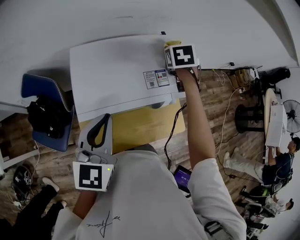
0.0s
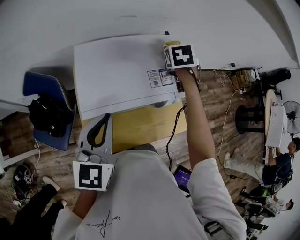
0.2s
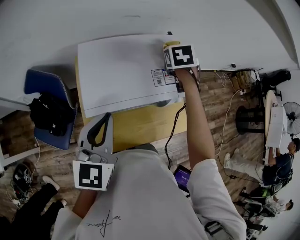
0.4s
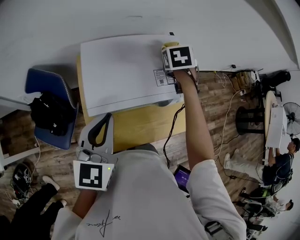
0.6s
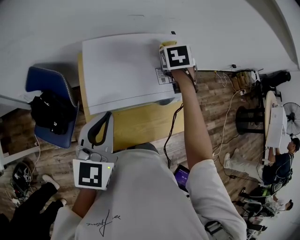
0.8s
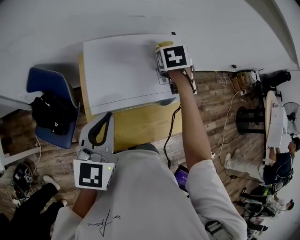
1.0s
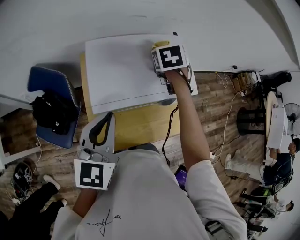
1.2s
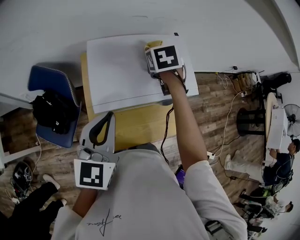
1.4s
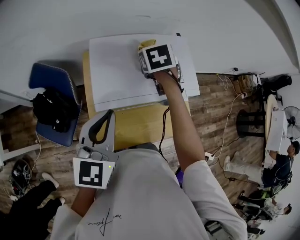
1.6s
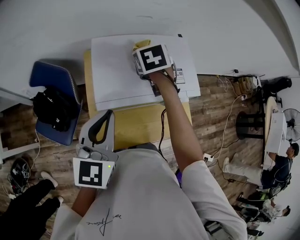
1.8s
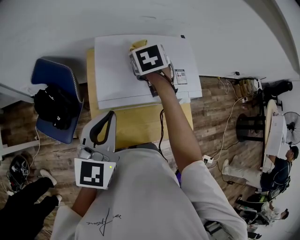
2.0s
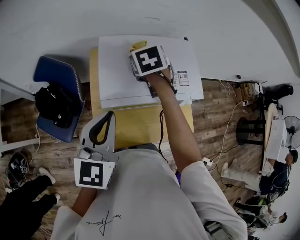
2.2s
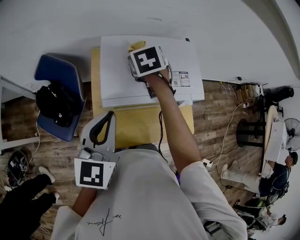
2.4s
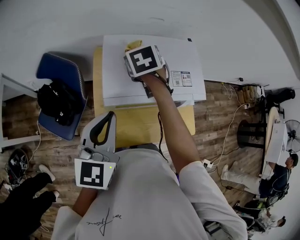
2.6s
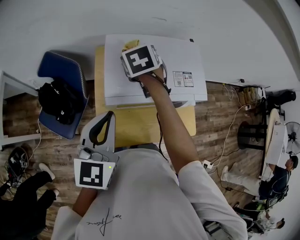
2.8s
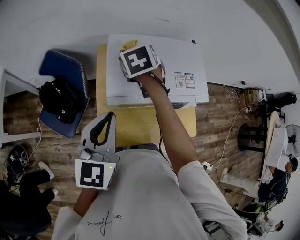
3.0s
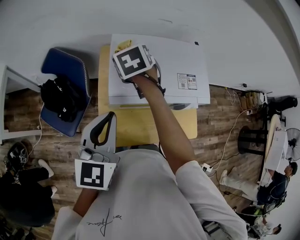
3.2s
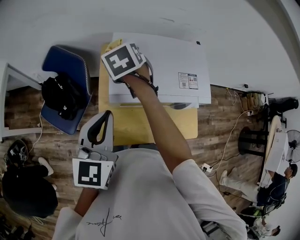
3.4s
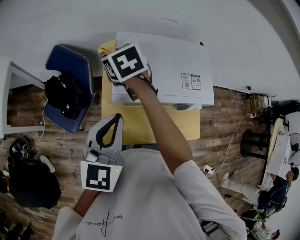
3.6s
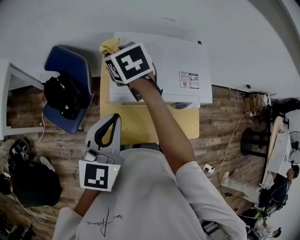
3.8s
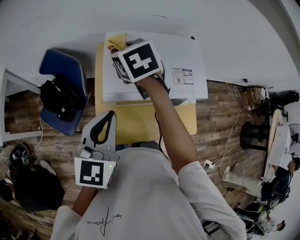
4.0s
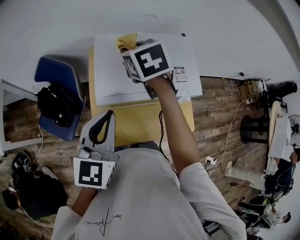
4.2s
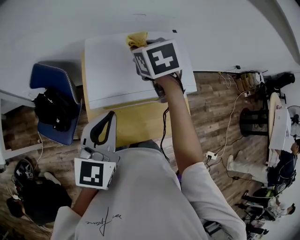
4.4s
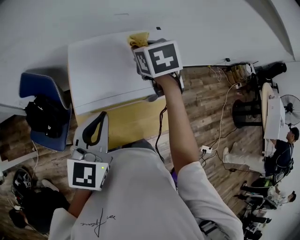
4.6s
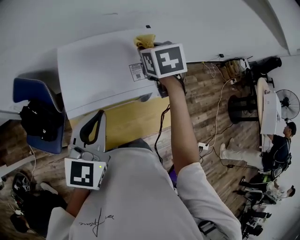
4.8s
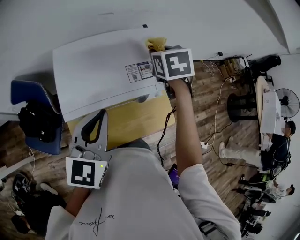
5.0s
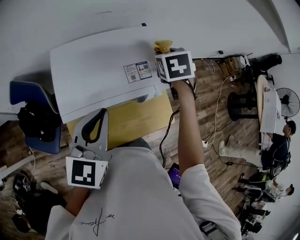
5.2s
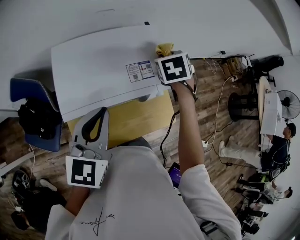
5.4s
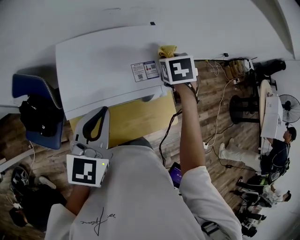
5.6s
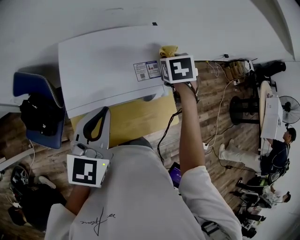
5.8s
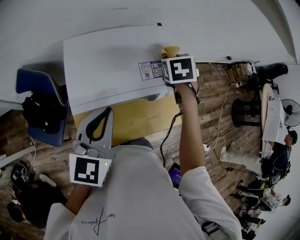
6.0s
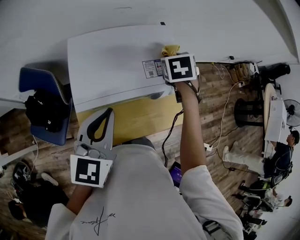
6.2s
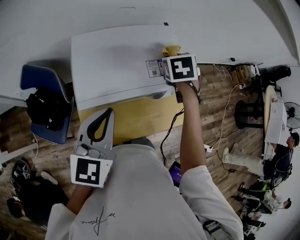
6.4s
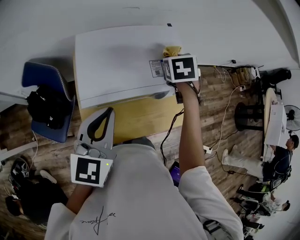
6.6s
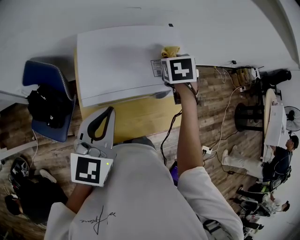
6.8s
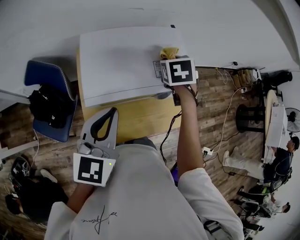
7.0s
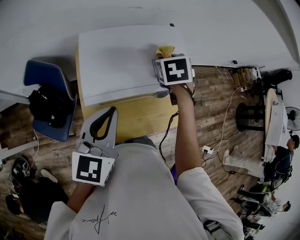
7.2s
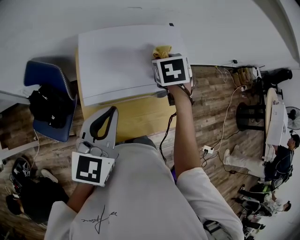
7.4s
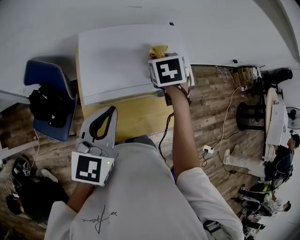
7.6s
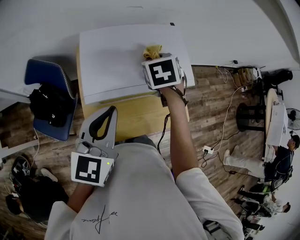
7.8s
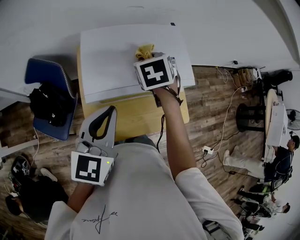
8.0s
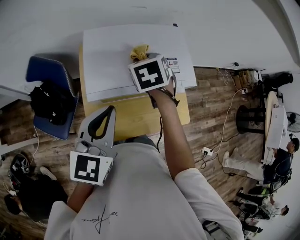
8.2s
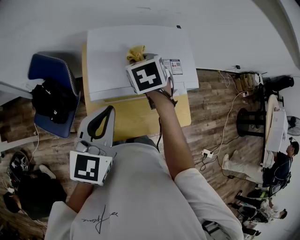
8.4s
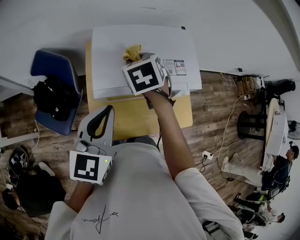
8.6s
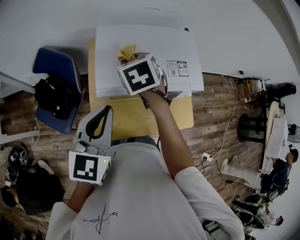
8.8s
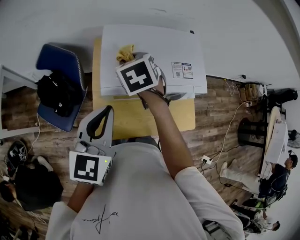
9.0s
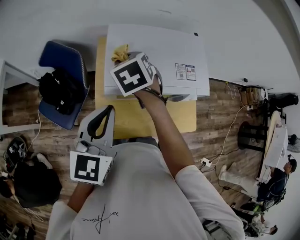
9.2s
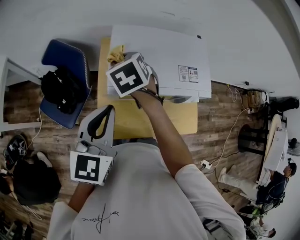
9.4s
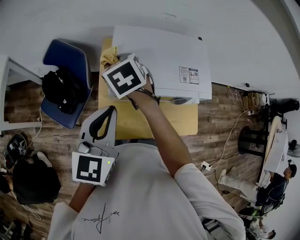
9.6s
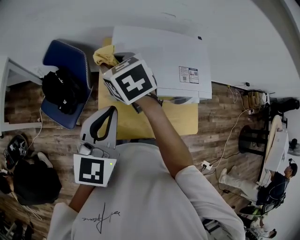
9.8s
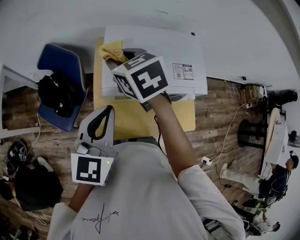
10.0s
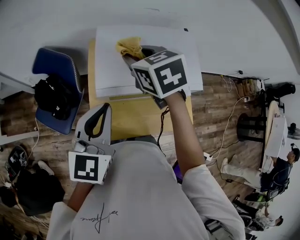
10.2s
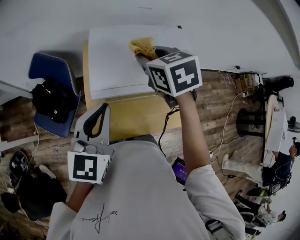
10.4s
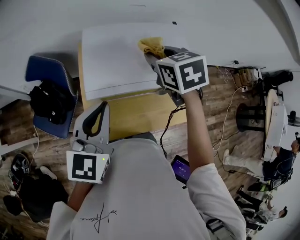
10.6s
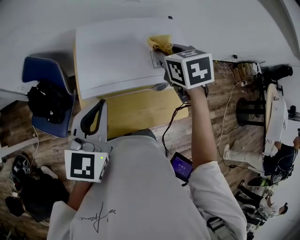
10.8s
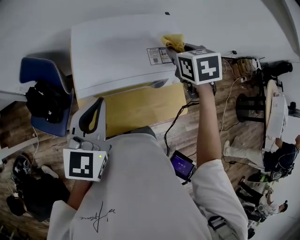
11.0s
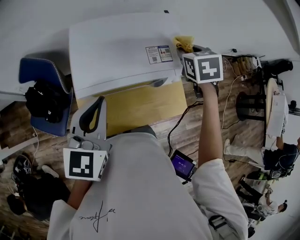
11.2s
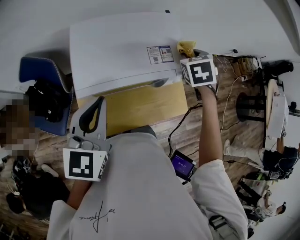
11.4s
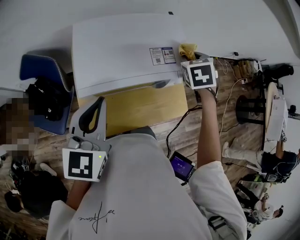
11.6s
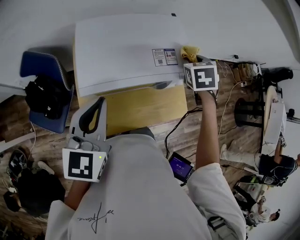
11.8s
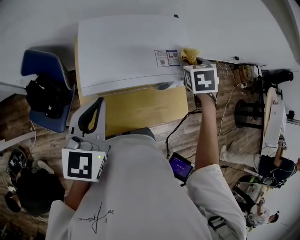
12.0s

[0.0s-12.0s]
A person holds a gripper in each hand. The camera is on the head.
0.0s to 1.6s: The left gripper ends up about 5 cm from where it was; the right gripper goes some 20 cm to the left and backward.
1.6s to 3.0s: The right gripper heads to the left, covering approximately 15 cm.
3.0s to 4.4s: The right gripper heads to the right and upward, covering roughly 10 cm; the left gripper travels to the right by approximately 5 cm.
4.4s to 6.0s: The left gripper changes place by roughly 5 cm. The right gripper heads to the right, covering about 20 cm, and turns by some 30 degrees.
6.0s to 7.6s: The right gripper shifts roughly 10 cm to the left and backward.
7.6s to 9.0s: The left gripper heads to the left, covering about 5 cm; the right gripper travels to the left by roughly 20 cm, and changes its angle by approximately 20 degrees.
9.0s to 10.4s: The right gripper travels to the right and upward by roughly 10 cm.
10.4s to 12.0s: The right gripper shifts by about 25 cm, and swivels about 30 degrees.

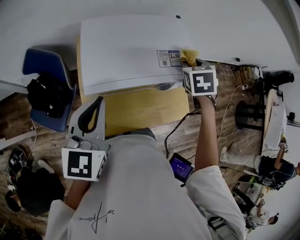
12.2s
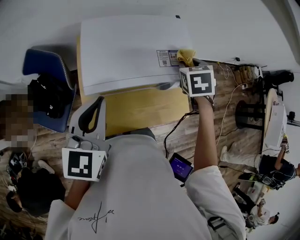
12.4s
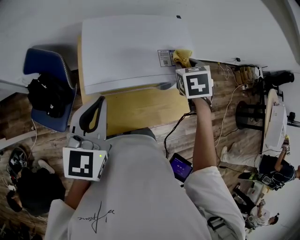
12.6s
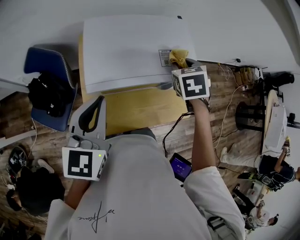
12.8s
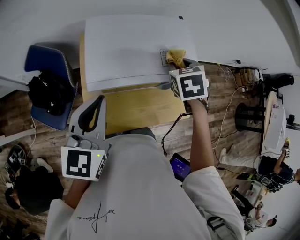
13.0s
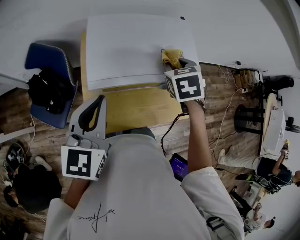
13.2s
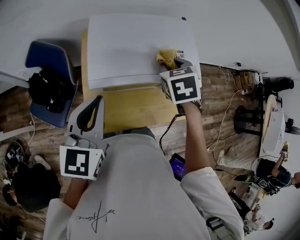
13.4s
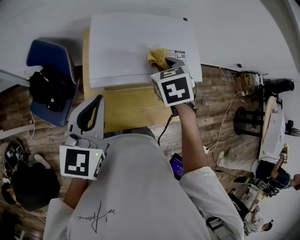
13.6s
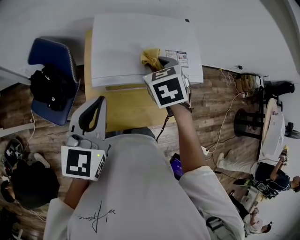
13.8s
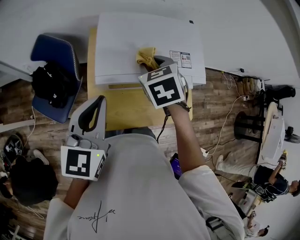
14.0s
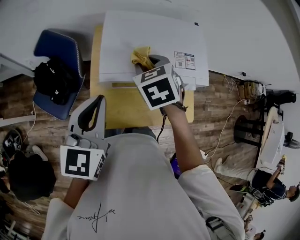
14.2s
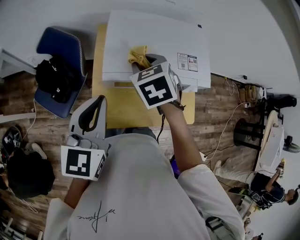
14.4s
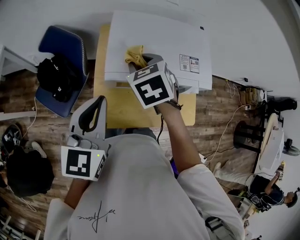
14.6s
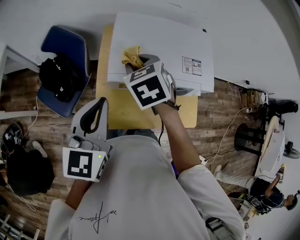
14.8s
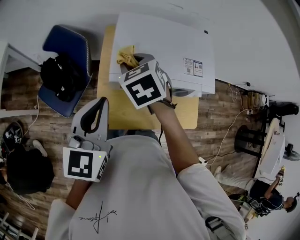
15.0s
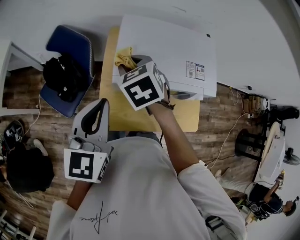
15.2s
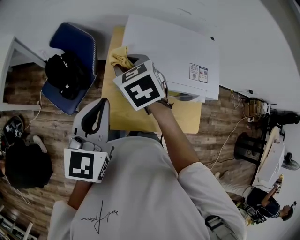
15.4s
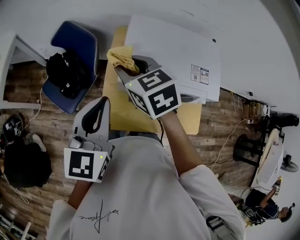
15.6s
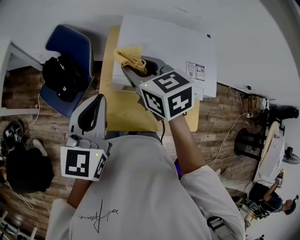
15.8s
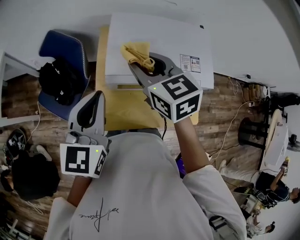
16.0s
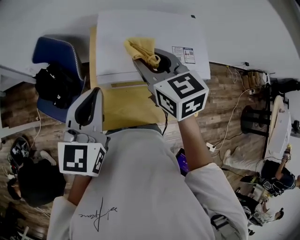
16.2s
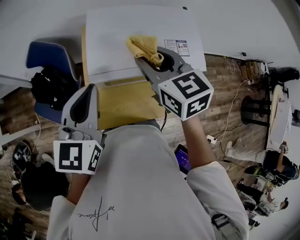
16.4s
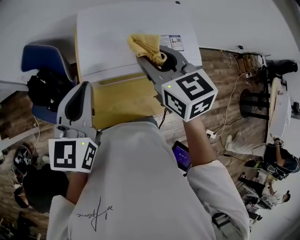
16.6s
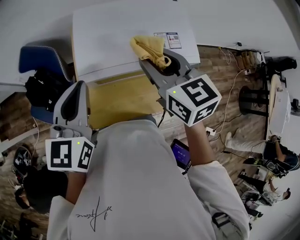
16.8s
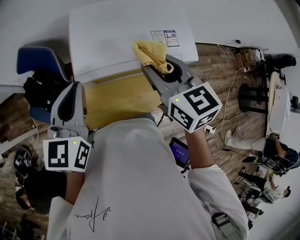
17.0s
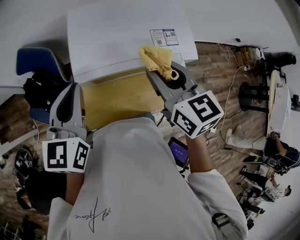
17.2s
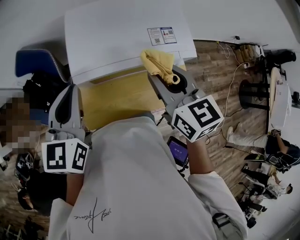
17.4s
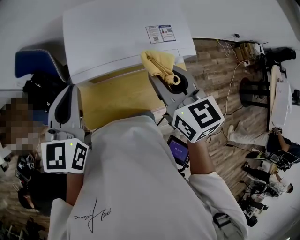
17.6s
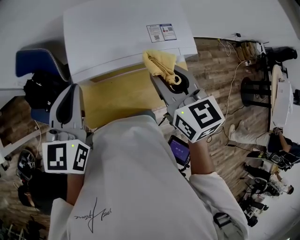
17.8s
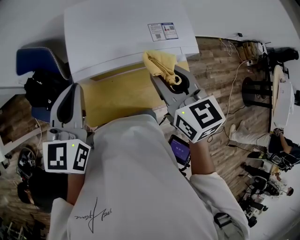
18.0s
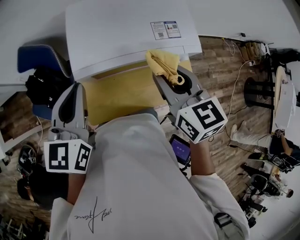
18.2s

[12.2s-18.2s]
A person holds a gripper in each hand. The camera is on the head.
12.2s to 13.8s: The right gripper is displaced to the left and backward by some 20 cm.
13.8s to 15.2s: The right gripper travels to the left by approximately 15 cm; the left gripper moves approximately 5 cm.
15.2s to 16.6s: The right gripper is displaced to the right and upward by about 15 cm, and swivels approximately 30 degrees; the left gripper ends up some 5 cm from where it was.
16.6s to 18.2s: The right gripper goes approximately 10 cm backward and to the right.

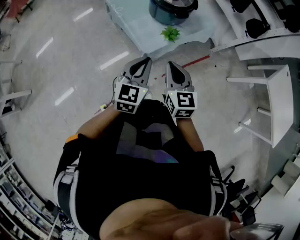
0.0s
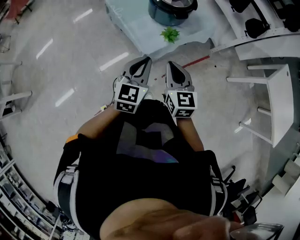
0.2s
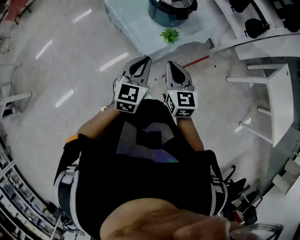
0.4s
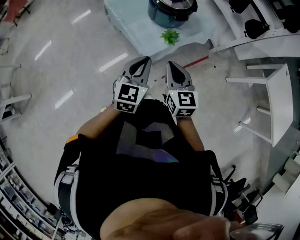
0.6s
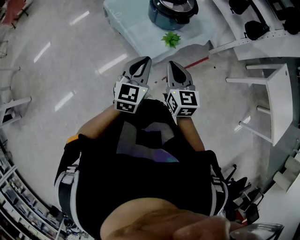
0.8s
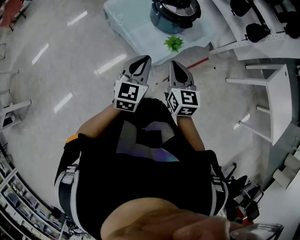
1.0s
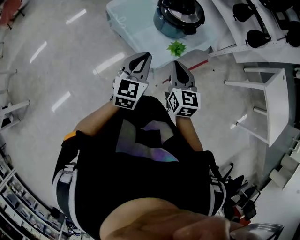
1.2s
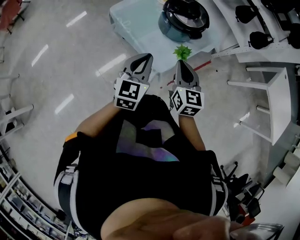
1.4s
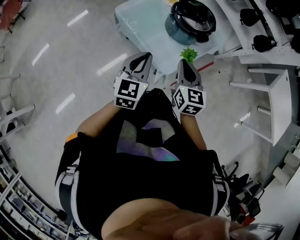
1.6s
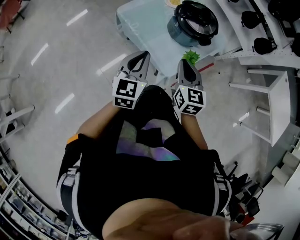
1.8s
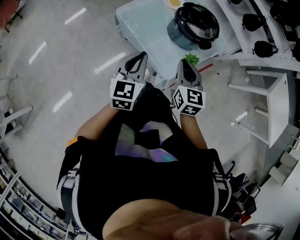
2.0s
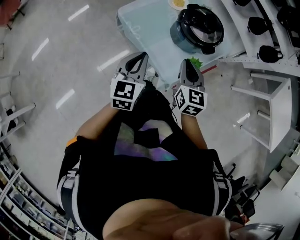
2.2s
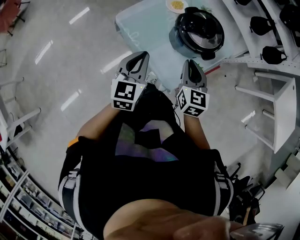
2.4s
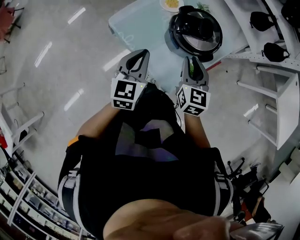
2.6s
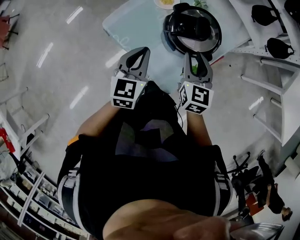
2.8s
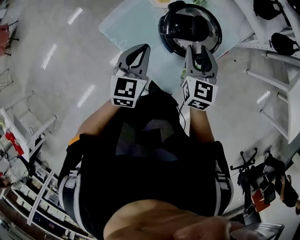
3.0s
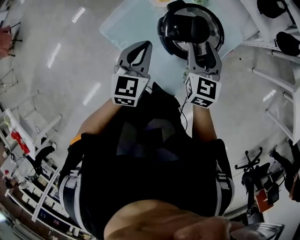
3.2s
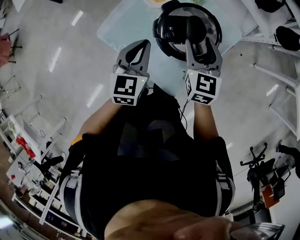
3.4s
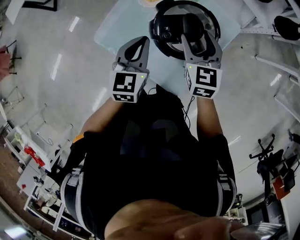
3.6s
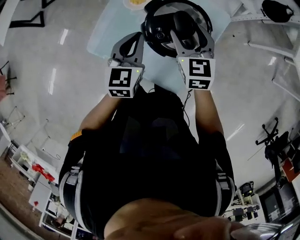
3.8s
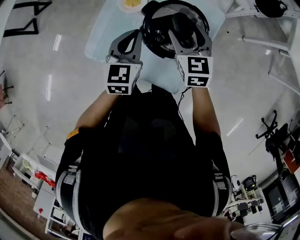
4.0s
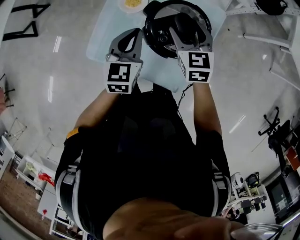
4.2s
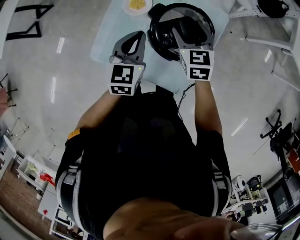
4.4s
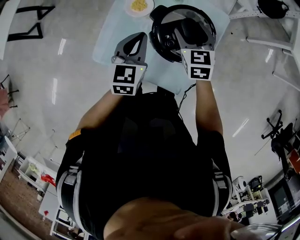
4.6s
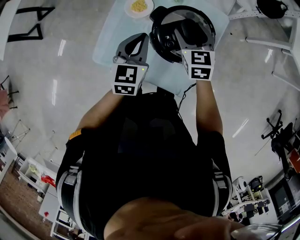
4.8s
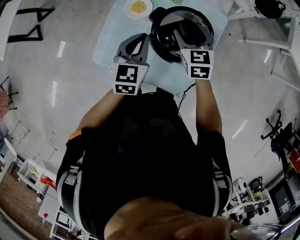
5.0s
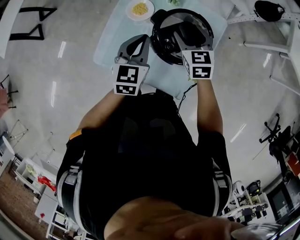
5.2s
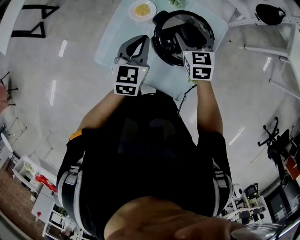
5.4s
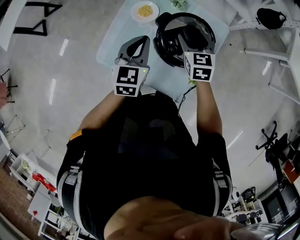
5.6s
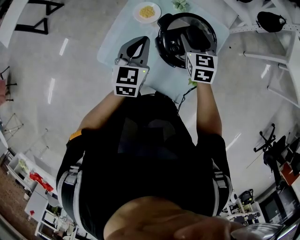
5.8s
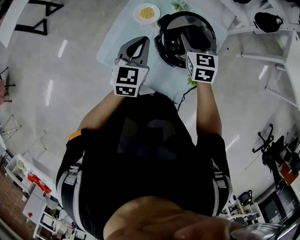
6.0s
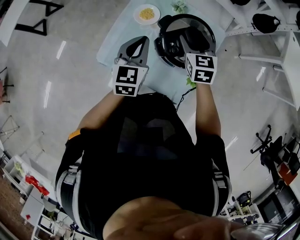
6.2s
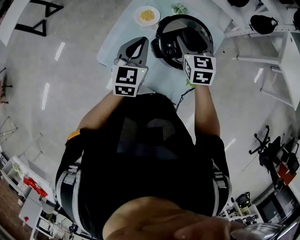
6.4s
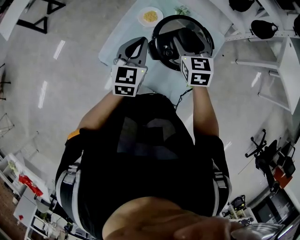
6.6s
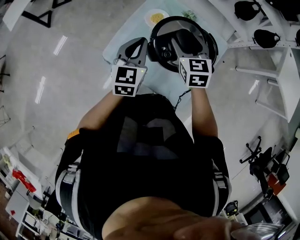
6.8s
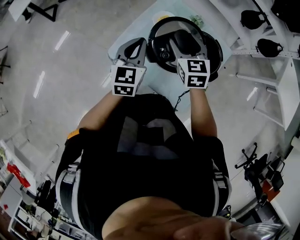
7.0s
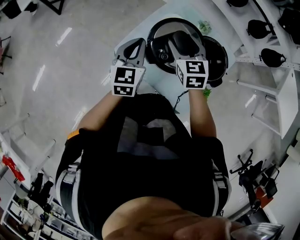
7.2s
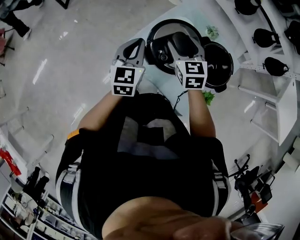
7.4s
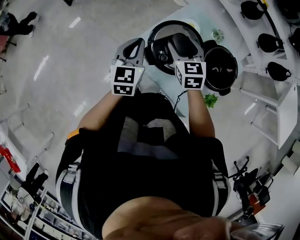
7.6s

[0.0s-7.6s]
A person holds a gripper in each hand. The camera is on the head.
0.0s to 1.6s: The right gripper heads forward and to the left, covering approximately 20 cm; the left gripper travels to the left and forward by roughly 20 cm.
1.6s to 3.0s: The two grippers go roughly 25 cm forward. The right gripper opens.
3.0s to 4.6s: The left gripper heads forward, covering about 15 cm. Meanwhile the right gripper is displaced forward and downward by about 10 cm, and opens its fingers.
4.6s to 6.0s: There are only small adjustments of the grippers.
6.0s to 7.6s: Both grippers move to the left, approximately 25 cm. The right gripper changes its angle by some 20 degrees.
